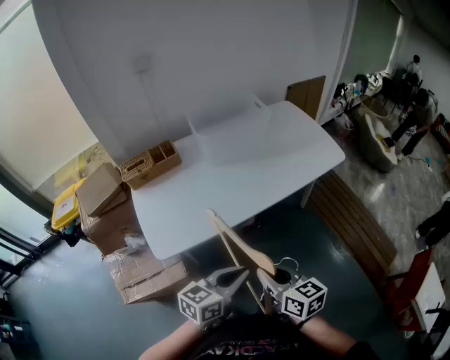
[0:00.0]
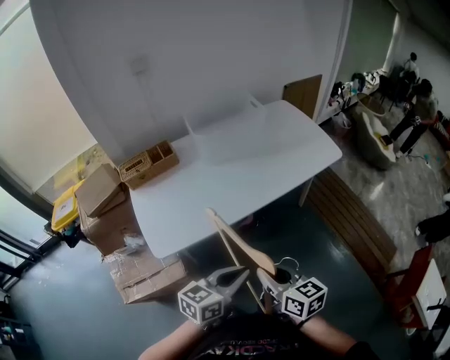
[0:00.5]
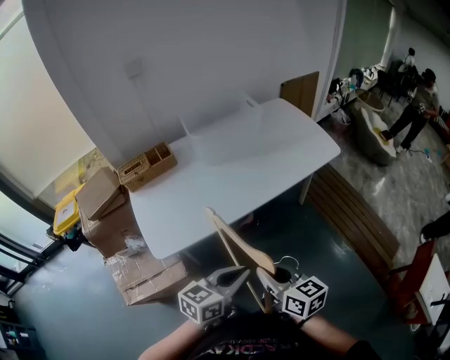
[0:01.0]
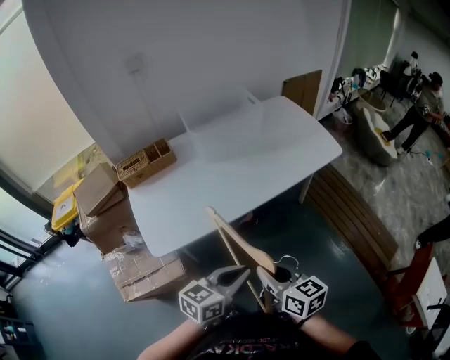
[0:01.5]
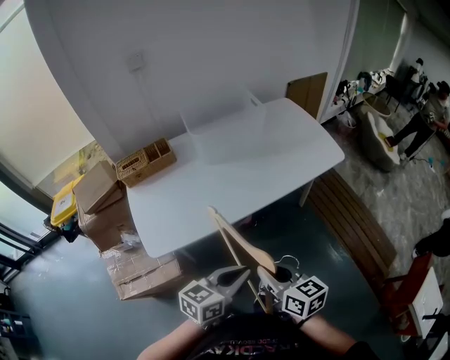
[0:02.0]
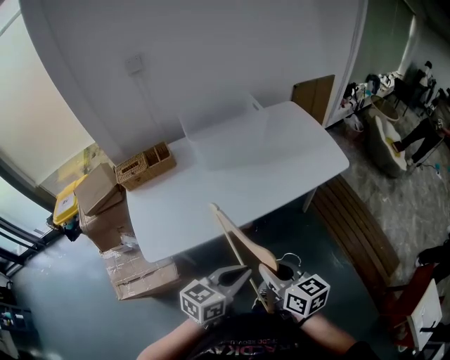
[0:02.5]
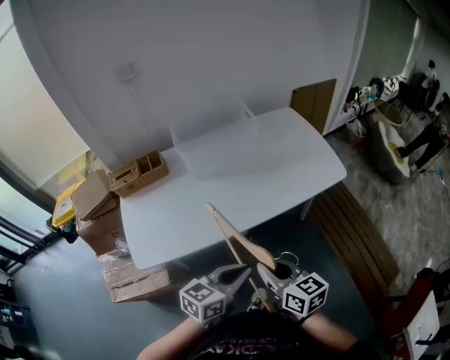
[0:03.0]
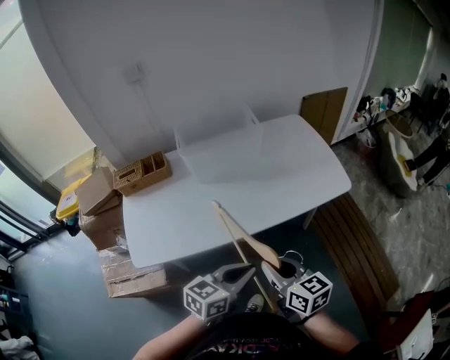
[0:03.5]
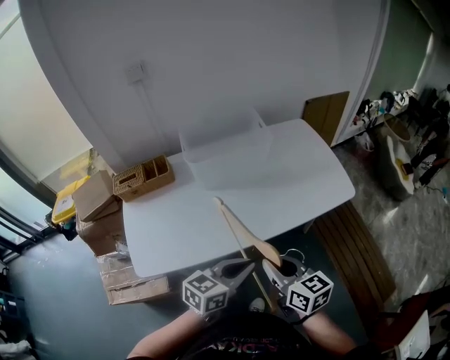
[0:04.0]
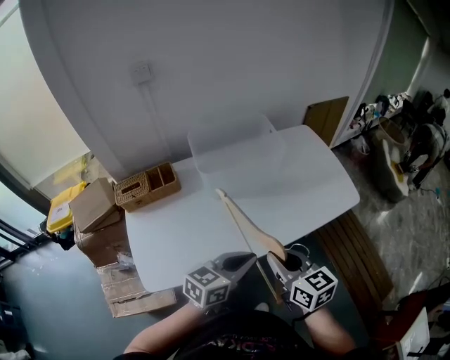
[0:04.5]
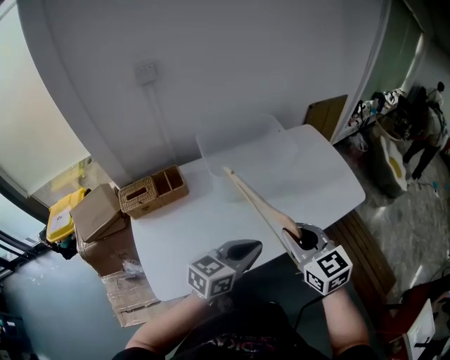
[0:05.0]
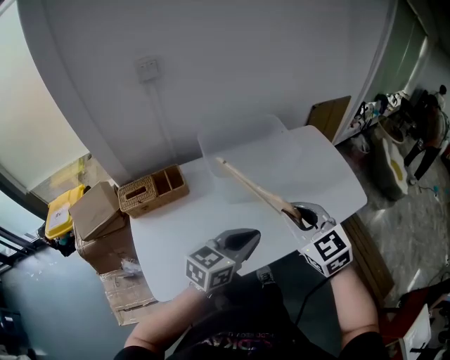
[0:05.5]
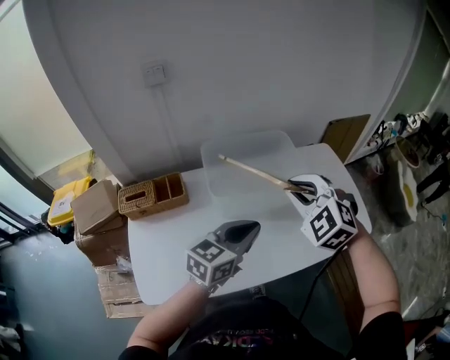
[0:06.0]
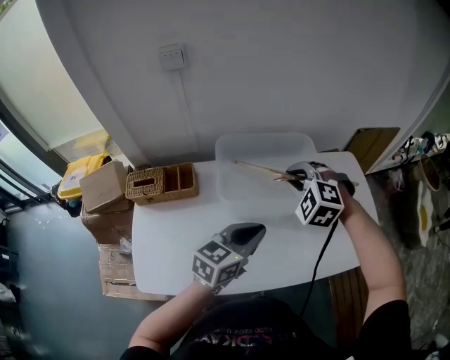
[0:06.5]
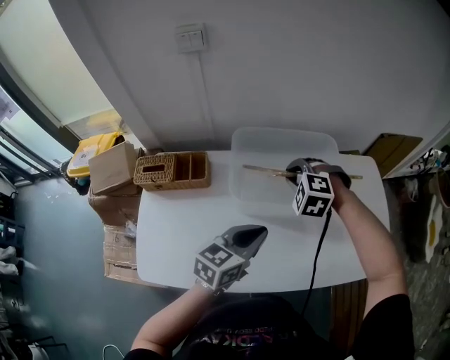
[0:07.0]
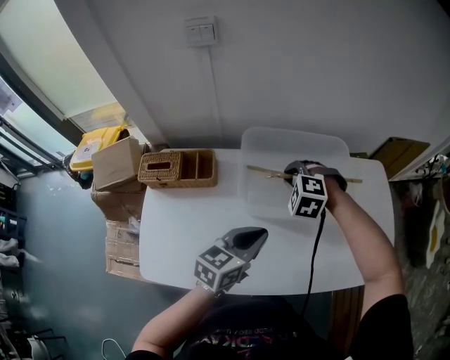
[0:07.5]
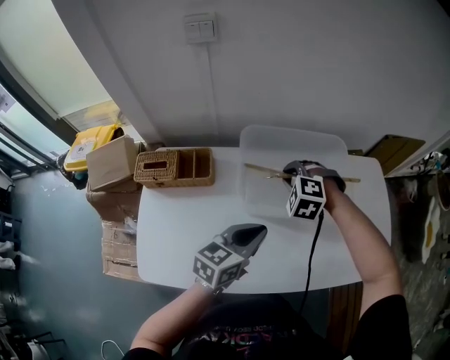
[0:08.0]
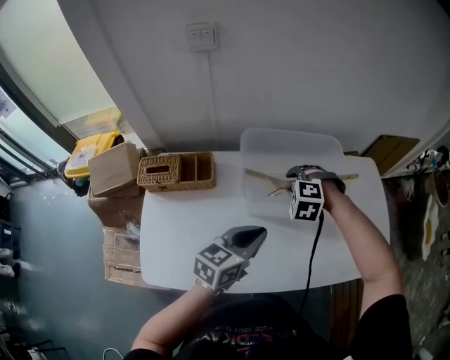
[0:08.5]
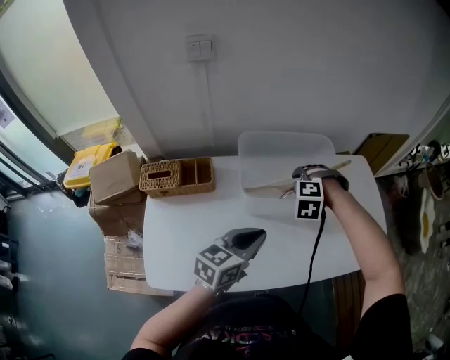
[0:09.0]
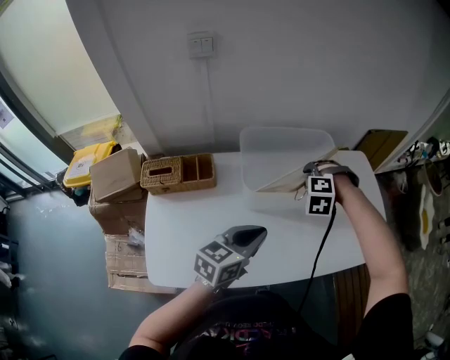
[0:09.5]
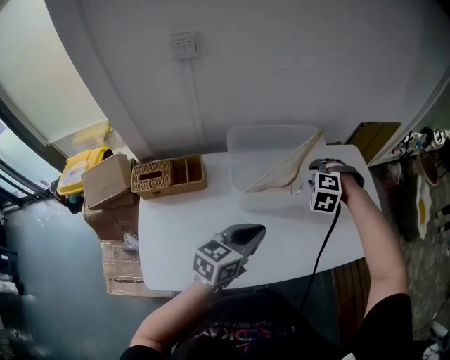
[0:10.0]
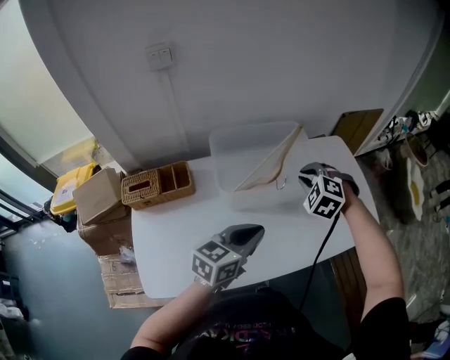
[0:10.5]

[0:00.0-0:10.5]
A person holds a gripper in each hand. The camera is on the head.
0:00.0 to 0:02.0: The grippers stay close to where they were, moving slightly.
0:02.0 to 0:04.0: The right gripper heads forward, covering some 20 cm; the left gripper heads forward and to the right, covering roughly 20 cm.
0:04.0 to 0:06.5: Both grippers travel together forward and to the left, approximately 35 cm. The right gripper twists some 80 degrees counterclockwise, seen from behind.
0:06.5 to 0:08.5: The left gripper heads to the left, covering approximately 5 cm. The right gripper goes approximately 15 cm downward and to the left.
0:08.5 to 0:10.5: The left gripper goes roughly 5 cm to the right; the right gripper shifts about 15 cm to the right and upward, and changes its angle by roughly 30 degrees.

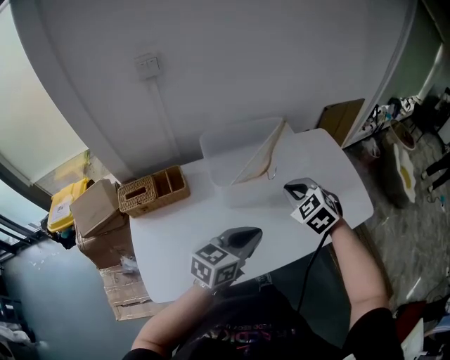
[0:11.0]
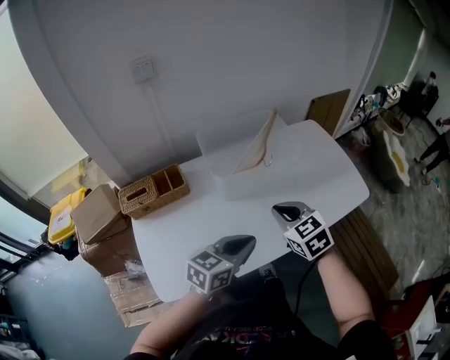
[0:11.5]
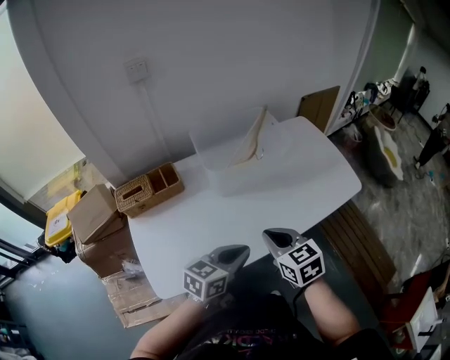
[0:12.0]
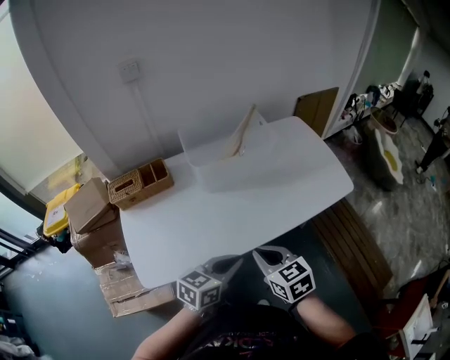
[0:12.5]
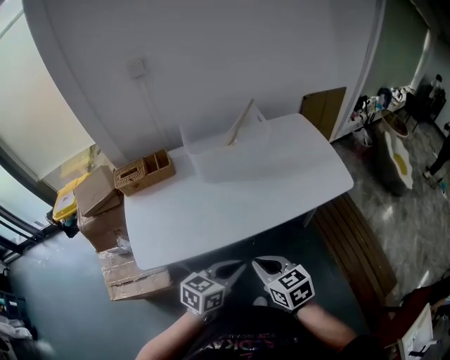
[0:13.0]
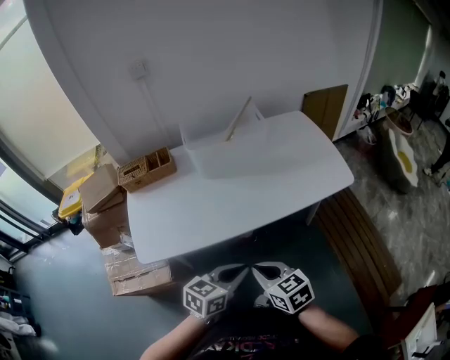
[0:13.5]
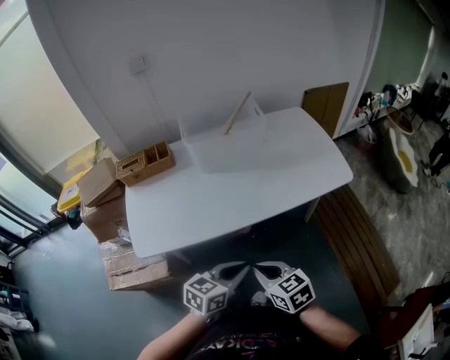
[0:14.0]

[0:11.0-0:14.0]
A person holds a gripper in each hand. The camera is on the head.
0:11.0 to 0:12.5: The right gripper heads backward, covering roughly 30 cm, and turns by roughly 40 degrees. The left gripper is displaced backward by some 15 cm.
0:12.5 to 0:14.0: The two grippers go some 15 cm backward and to the right.

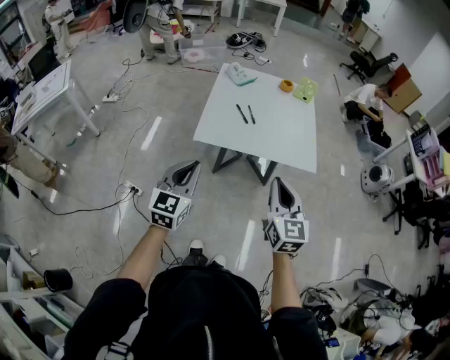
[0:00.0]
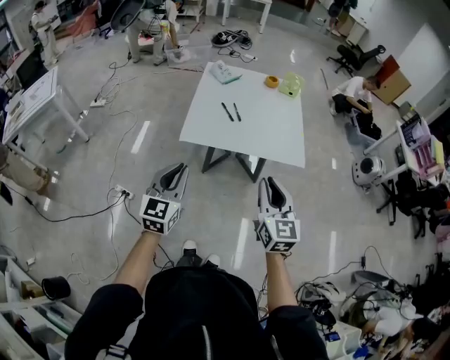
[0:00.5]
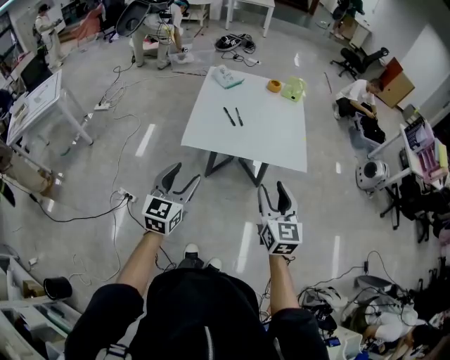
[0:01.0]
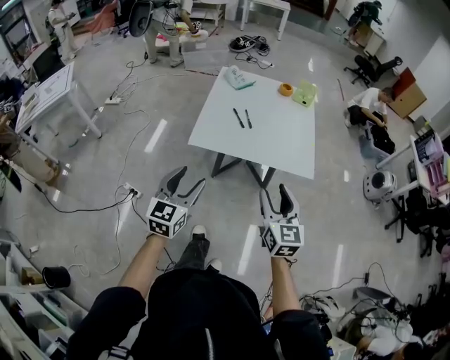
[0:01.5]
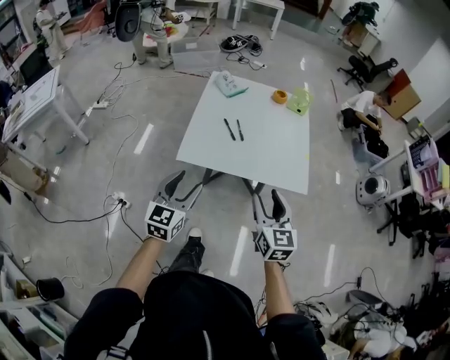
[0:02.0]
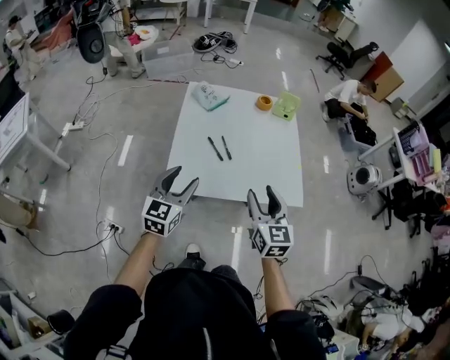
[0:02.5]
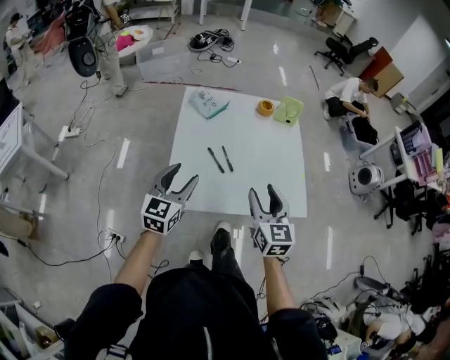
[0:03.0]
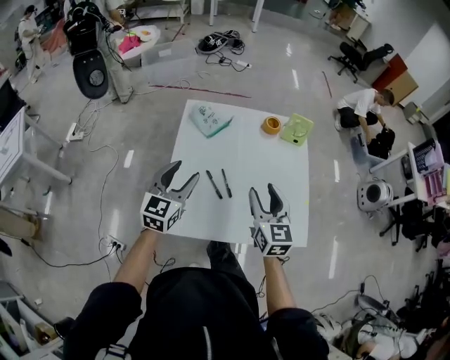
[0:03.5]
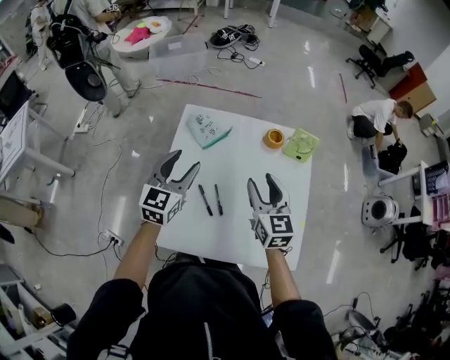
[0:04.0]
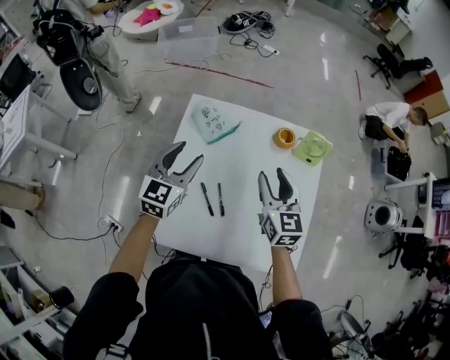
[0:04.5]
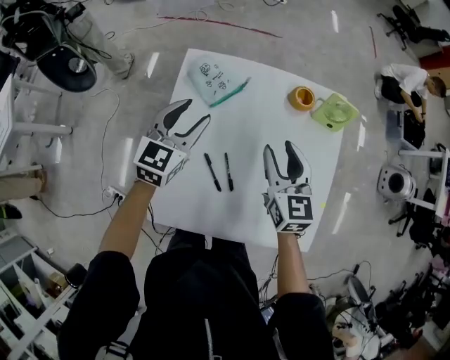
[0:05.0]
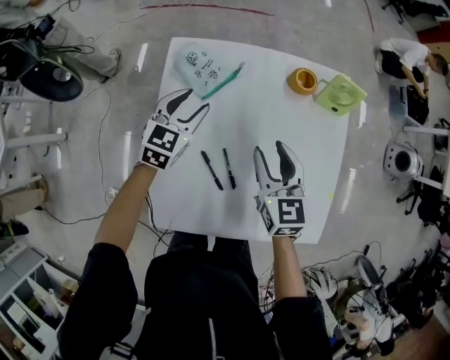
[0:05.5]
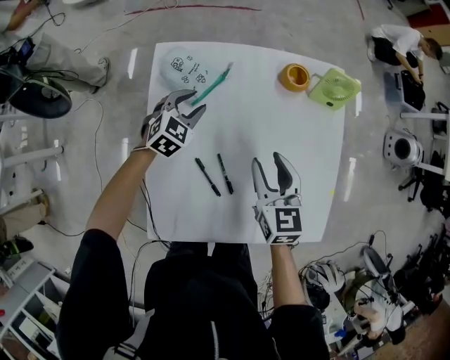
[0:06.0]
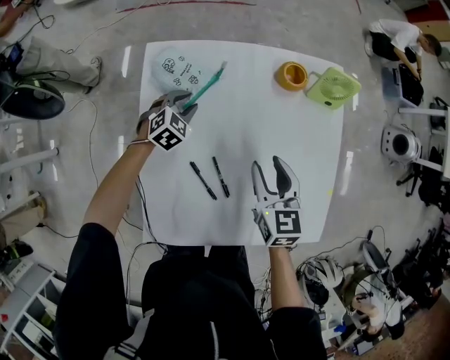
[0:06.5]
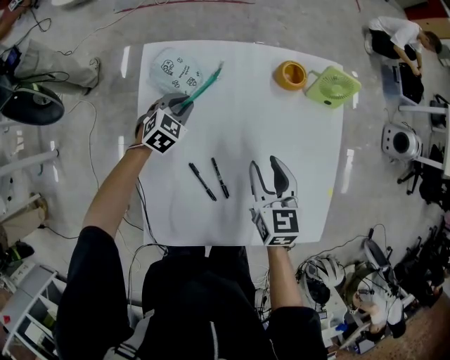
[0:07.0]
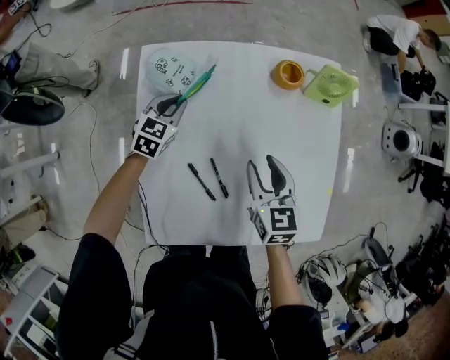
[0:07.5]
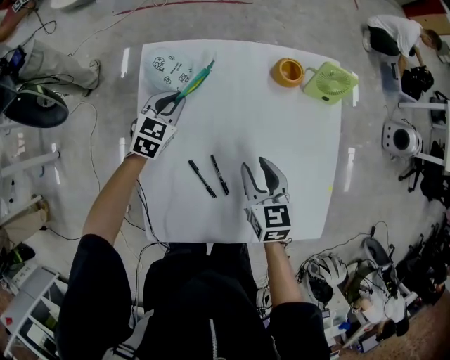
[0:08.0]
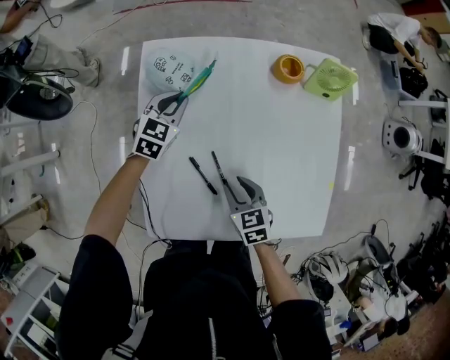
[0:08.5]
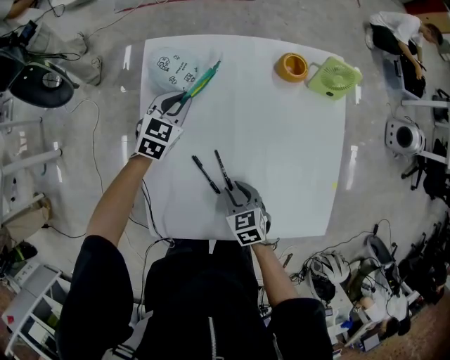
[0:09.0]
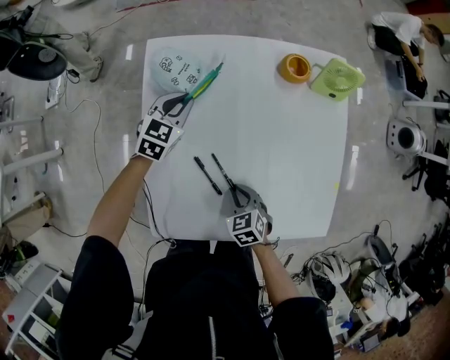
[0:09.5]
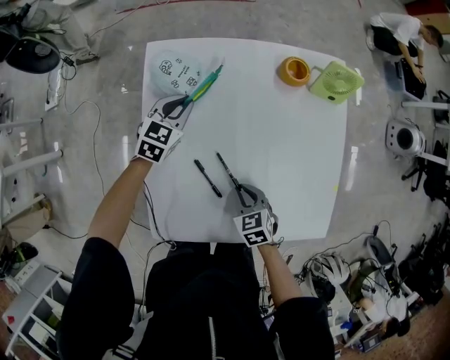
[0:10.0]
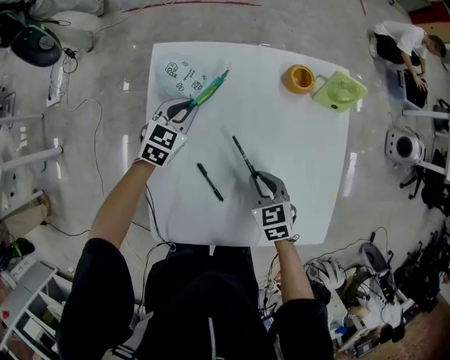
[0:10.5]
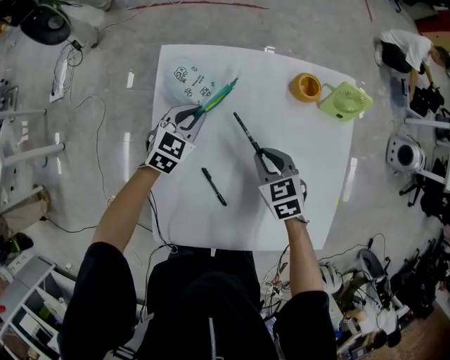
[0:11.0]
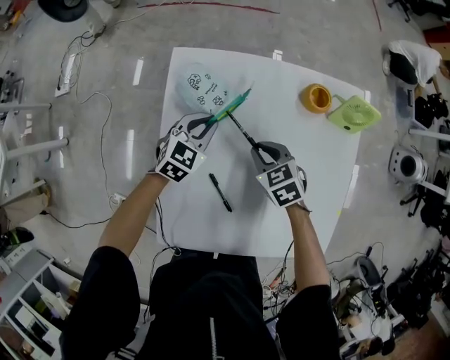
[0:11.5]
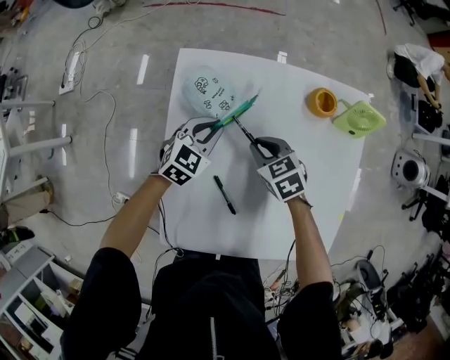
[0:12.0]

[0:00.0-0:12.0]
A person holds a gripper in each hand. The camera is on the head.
0:00.0 to 0:02.0: The left gripper moves forward, approximately 10 cm, and opens its fingers. The right gripper moves forward and downward, approximately 10 cm, and opens its fingers.
0:02.0 to 0:04.0: The two grippers travel together, forward, some 50 cm.
0:04.0 to 0:06.0: The left gripper heads downward and forward, covering some 30 cm, and tips its fingers downward by approximately 30 degrees. Meanwhile the right gripper travels downward by some 15 cm.
0:06.0 to 0:08.0: The left gripper goes downward and returns, some 5 cm each way, and closes up.
0:08.0 to 0:10.0: The right gripper moves downward and backward, approximately 15 cm, rotates roughly 20 degrees, and closes.
0:10.0 to 0:12.0: The right gripper heads forward, covering about 20 cm.

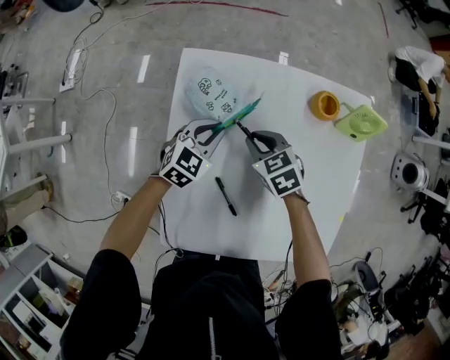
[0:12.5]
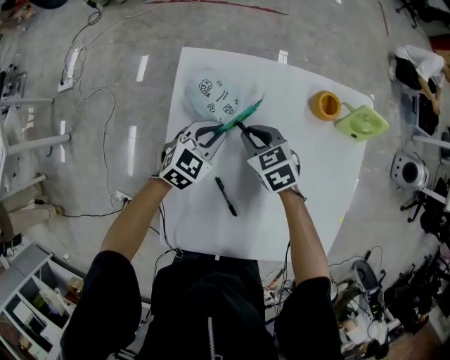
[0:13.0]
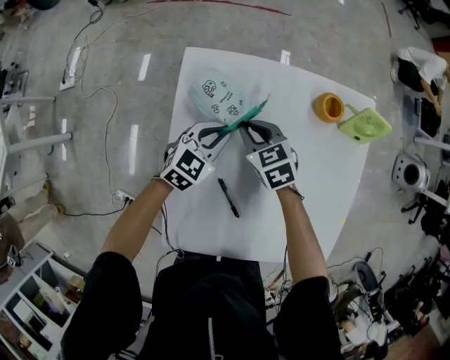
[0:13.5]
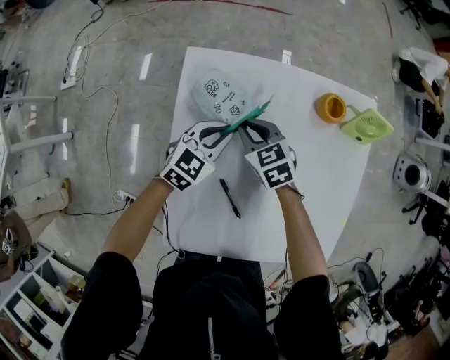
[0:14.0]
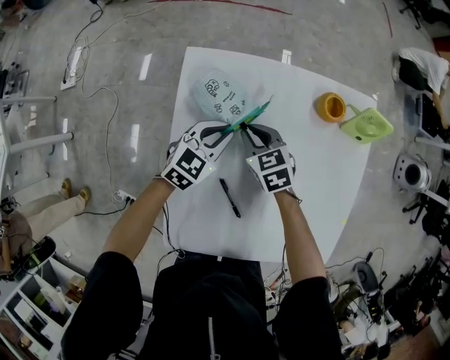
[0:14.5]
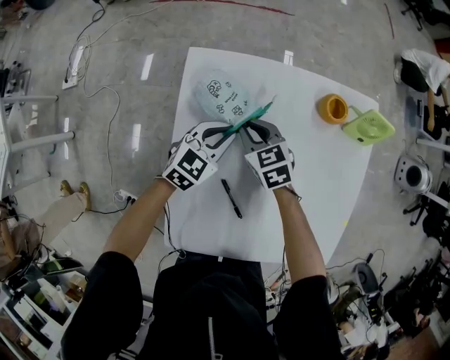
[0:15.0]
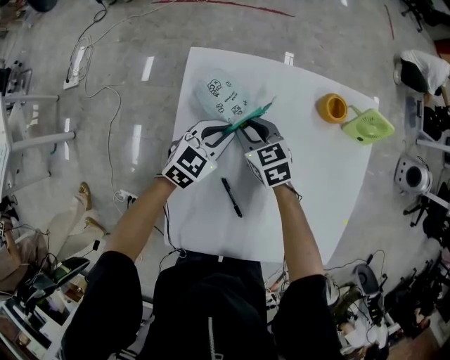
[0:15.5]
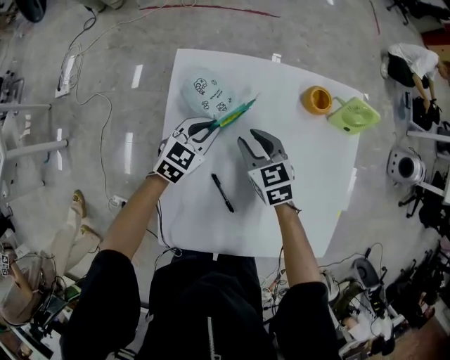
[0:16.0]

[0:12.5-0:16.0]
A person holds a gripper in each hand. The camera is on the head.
0:12.5 to 0:14.5: The grippers move only a little.
0:14.5 to 0:16.0: The right gripper moves roughly 5 cm.
